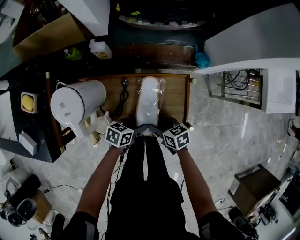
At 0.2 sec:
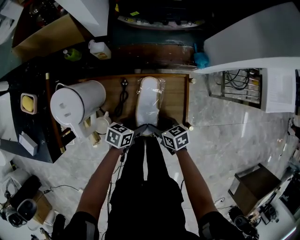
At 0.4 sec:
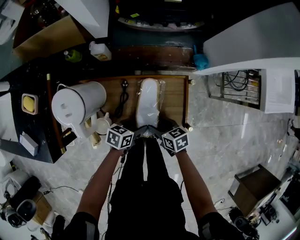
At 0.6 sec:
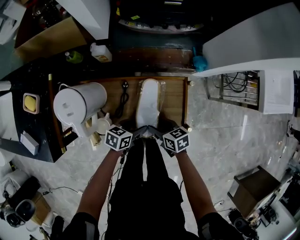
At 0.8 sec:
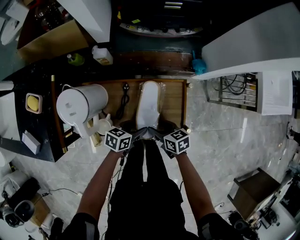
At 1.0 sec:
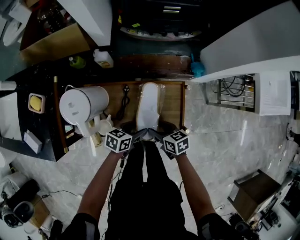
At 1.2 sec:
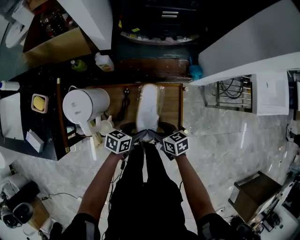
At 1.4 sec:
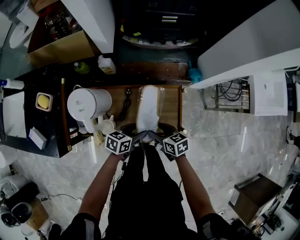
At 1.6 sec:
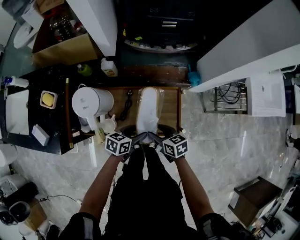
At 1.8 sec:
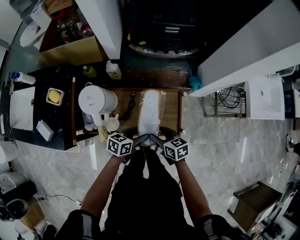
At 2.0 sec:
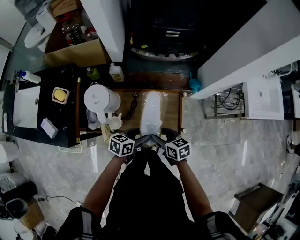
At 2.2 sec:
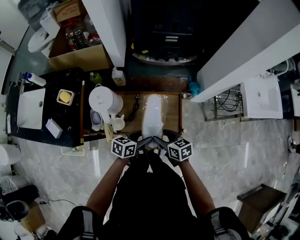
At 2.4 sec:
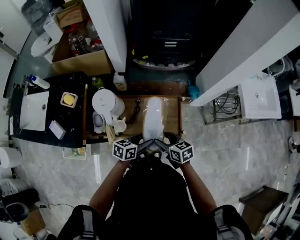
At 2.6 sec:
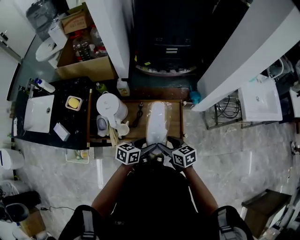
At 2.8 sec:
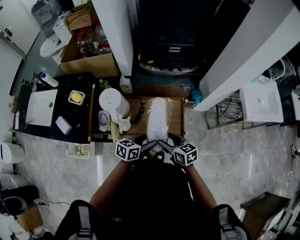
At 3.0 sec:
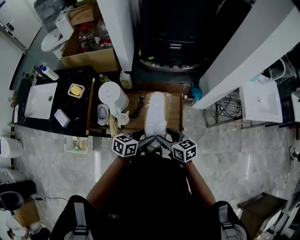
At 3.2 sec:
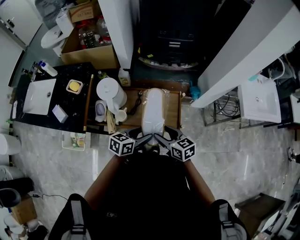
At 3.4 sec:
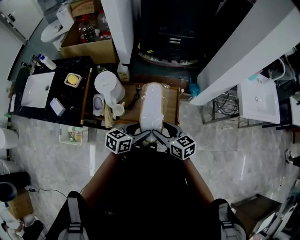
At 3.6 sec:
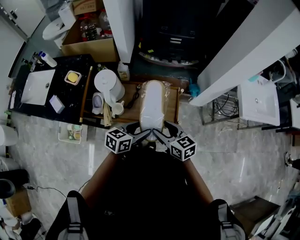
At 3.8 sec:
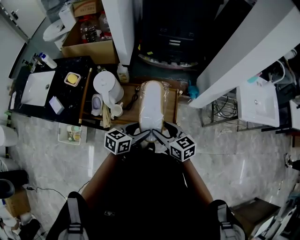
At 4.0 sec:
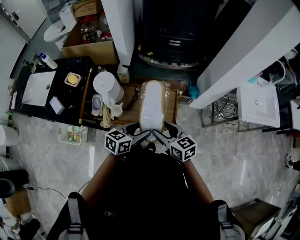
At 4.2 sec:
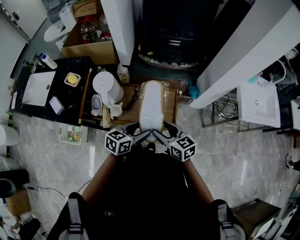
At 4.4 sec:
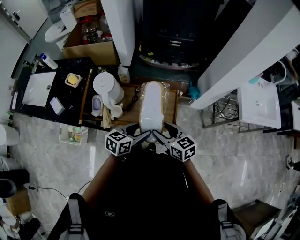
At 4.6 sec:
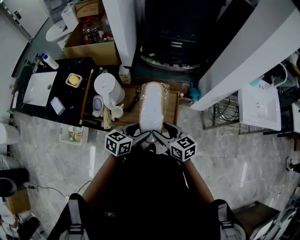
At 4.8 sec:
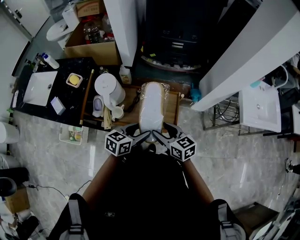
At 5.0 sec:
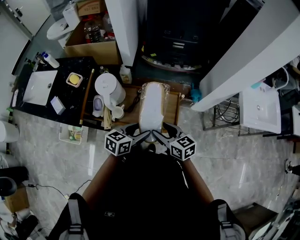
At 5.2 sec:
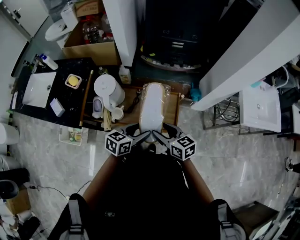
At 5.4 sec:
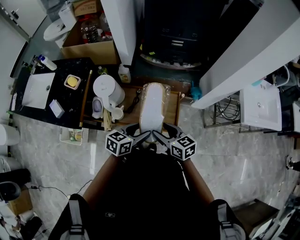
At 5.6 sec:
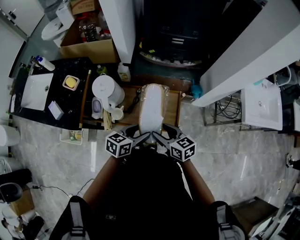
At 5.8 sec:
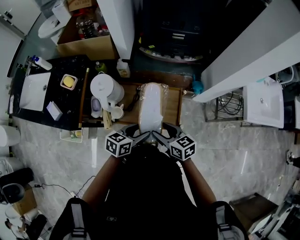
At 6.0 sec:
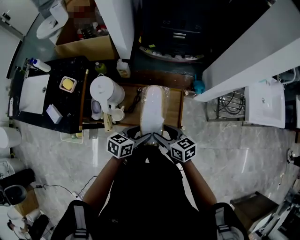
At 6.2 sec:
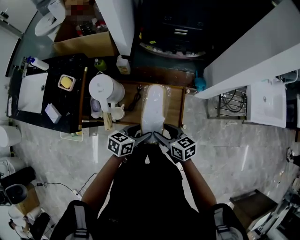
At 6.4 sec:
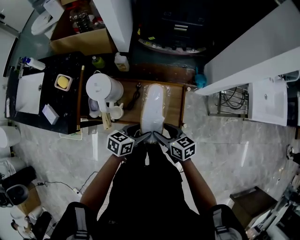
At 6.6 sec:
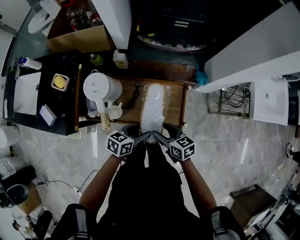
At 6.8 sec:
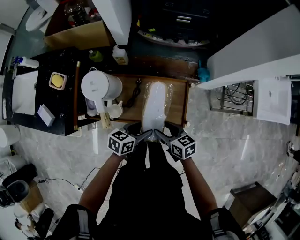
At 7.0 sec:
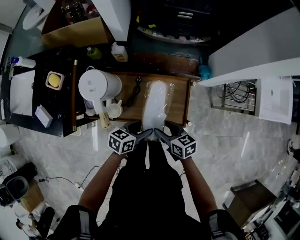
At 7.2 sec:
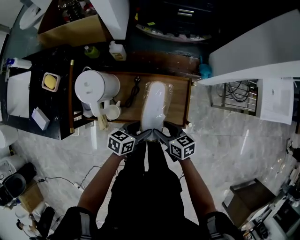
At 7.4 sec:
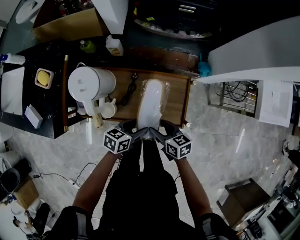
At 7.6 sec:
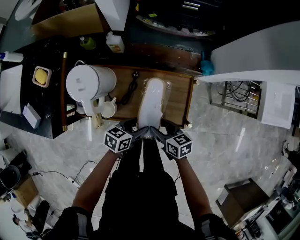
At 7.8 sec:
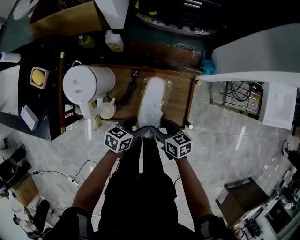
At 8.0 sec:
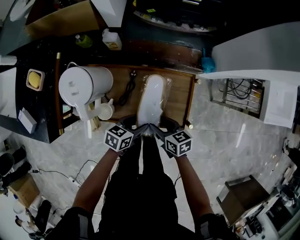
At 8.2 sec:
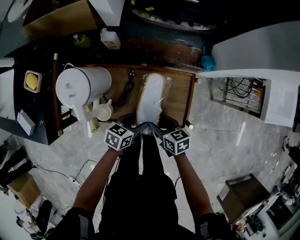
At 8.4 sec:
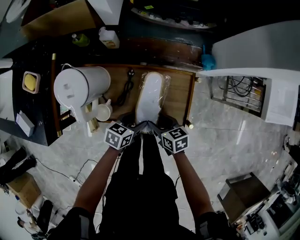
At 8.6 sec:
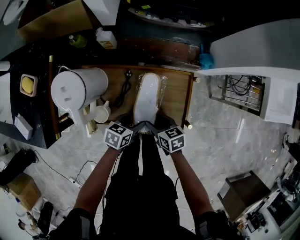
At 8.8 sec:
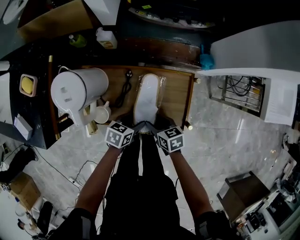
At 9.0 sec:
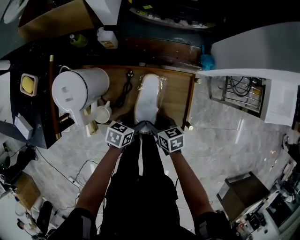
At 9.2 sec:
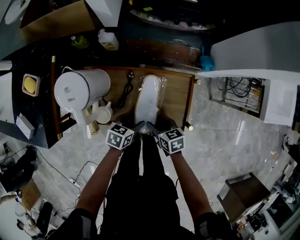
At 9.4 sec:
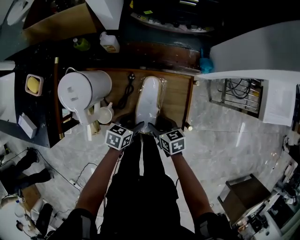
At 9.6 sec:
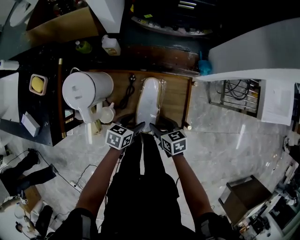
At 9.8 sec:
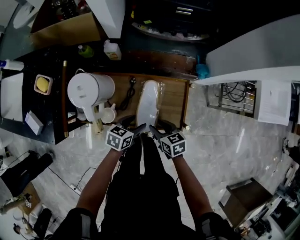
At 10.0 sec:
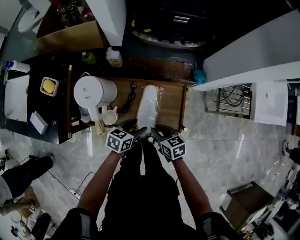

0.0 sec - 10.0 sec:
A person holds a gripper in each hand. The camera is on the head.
0.0 sec - 1.4 sec: The grippers both shift upward by approximately 10 cm.
1.4 sec - 2.8 sec: The grippers both shift upward and backward by some 15 cm.
2.8 sec - 4.2 sec: The left gripper moves some 5 cm; the right gripper travels upward by about 5 cm.
4.2 sec - 5.8 sec: The left gripper shifts by roughly 5 cm; the right gripper shifts by roughly 5 cm.
5.8 sec - 7.2 sec: The grippers both shift downward by some 15 cm.
7.2 sec - 8.6 sec: The two grippers go roughly 10 cm downward.
8.6 sec - 10.0 sec: Both grippers travel together upward, approximately 10 cm. The right gripper closes.

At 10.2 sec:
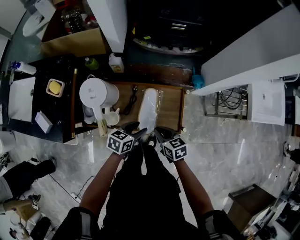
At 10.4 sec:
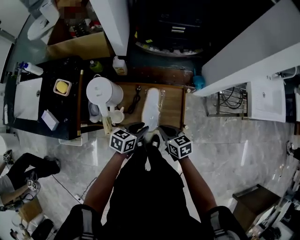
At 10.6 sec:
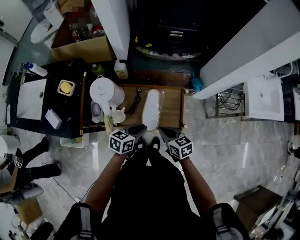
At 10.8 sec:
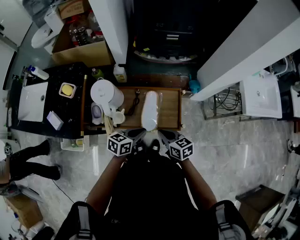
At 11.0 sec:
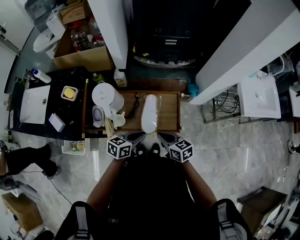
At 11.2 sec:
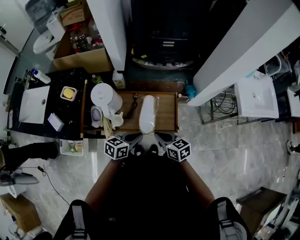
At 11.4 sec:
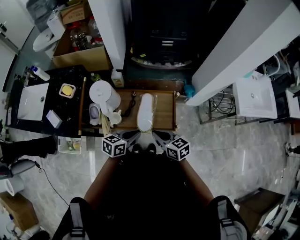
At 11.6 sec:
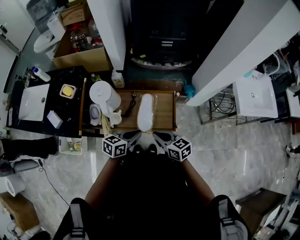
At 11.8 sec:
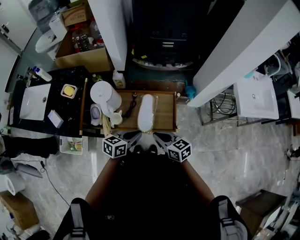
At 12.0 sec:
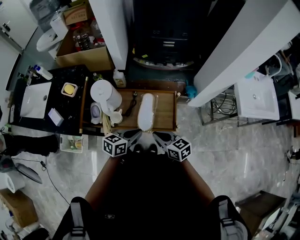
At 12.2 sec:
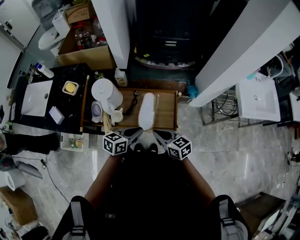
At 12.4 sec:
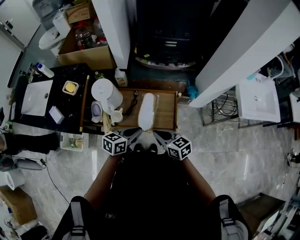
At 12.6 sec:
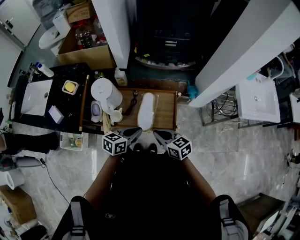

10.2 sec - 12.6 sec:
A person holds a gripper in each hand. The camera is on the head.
10.2 sec - 11.4 sec: The two grippers go some 15 cm upward and backward. The left gripper closes up.
11.4 sec - 12.6 sec: The grippers make only small movements.

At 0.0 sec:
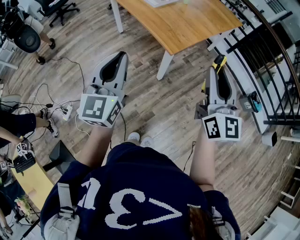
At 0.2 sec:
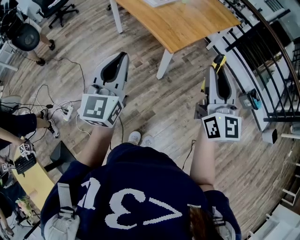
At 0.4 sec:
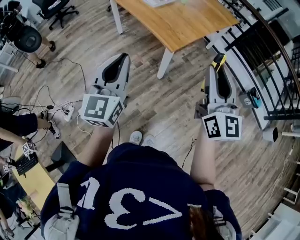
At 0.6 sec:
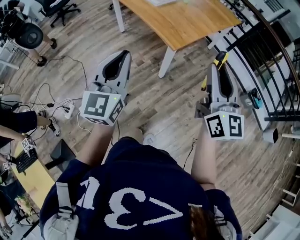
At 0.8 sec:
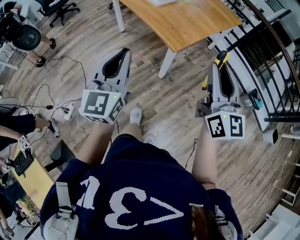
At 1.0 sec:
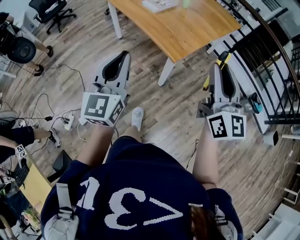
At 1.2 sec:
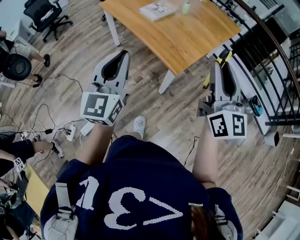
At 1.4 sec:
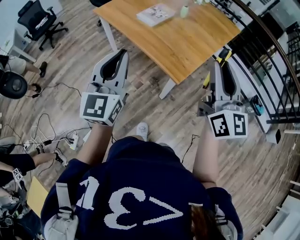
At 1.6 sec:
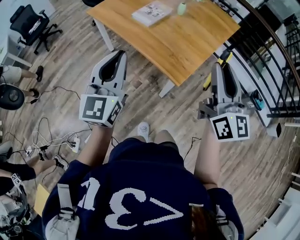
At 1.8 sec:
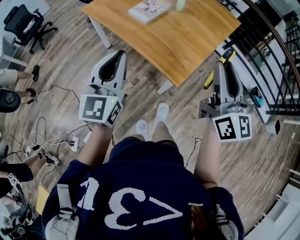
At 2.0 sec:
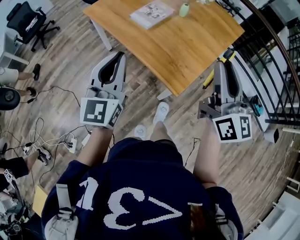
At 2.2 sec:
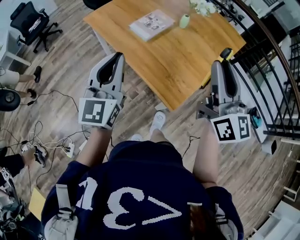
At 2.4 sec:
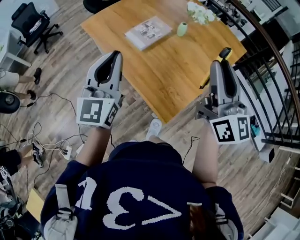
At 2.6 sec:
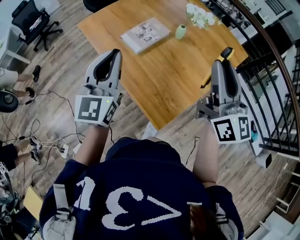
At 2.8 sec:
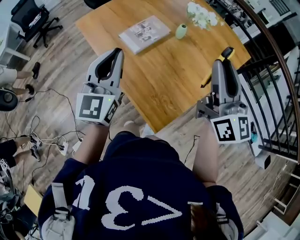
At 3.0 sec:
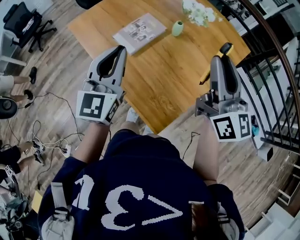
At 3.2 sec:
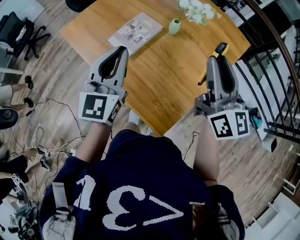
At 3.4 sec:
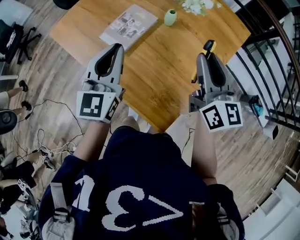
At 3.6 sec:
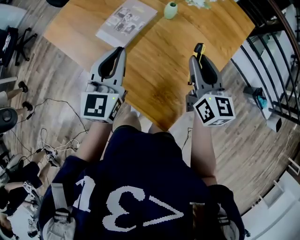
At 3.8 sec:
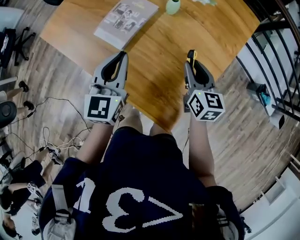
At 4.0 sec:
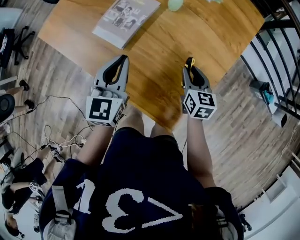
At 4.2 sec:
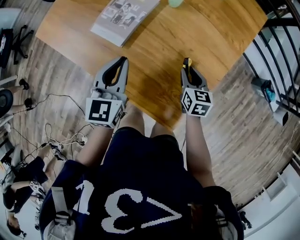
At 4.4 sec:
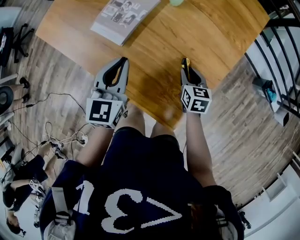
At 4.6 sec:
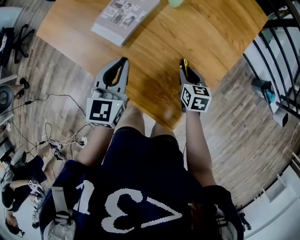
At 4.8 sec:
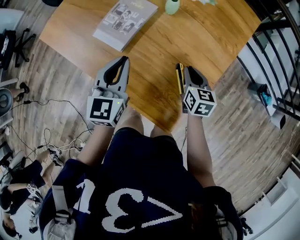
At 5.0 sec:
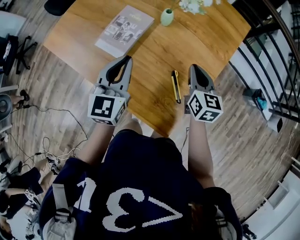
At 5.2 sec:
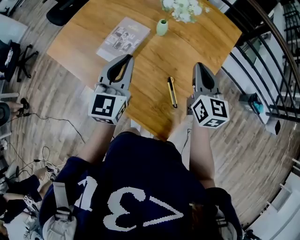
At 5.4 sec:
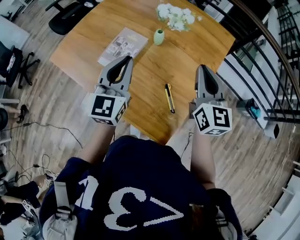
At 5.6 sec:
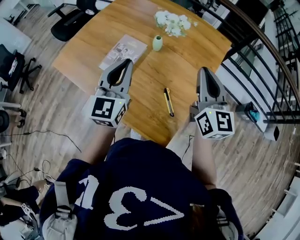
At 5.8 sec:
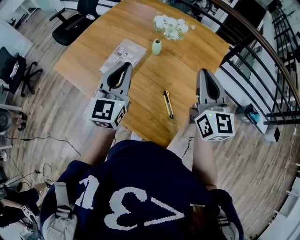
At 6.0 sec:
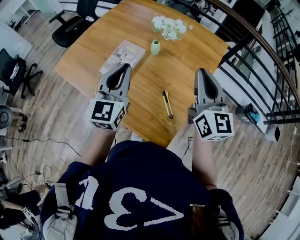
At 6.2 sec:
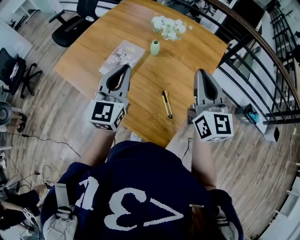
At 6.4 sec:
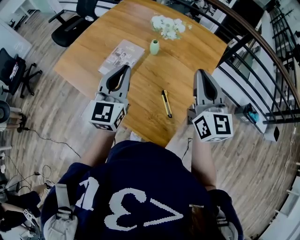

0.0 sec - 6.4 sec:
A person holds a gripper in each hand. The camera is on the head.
0.0 sec - 1.6 sec: The grippers both shift forward by about 20 cm.
1.6 sec - 3.2 sec: Both grippers travel together forward, approximately 35 cm.
3.2 sec - 4.8 sec: The right gripper is displaced downward by some 35 cm, and tilts its fingers approximately 40 degrees downward; the left gripper heads downward, covering approximately 15 cm.
4.8 sec - 6.4 sec: The left gripper heads upward, covering some 15 cm; the right gripper shifts approximately 30 cm upward, and tilts its fingers roughly 40 degrees upward.

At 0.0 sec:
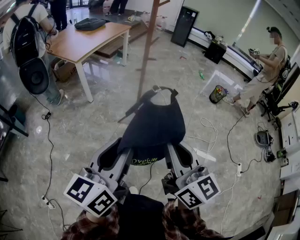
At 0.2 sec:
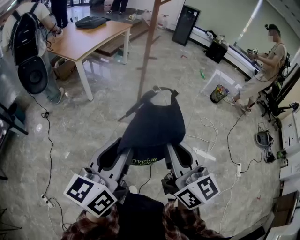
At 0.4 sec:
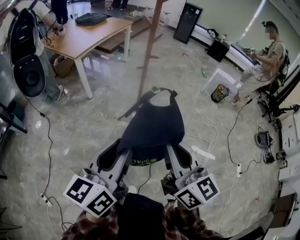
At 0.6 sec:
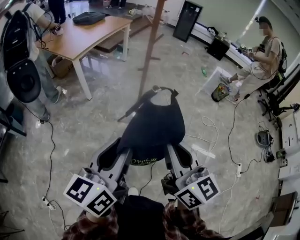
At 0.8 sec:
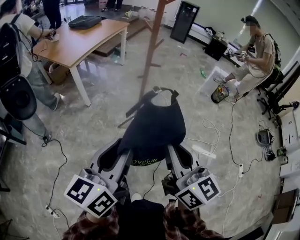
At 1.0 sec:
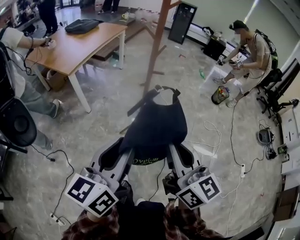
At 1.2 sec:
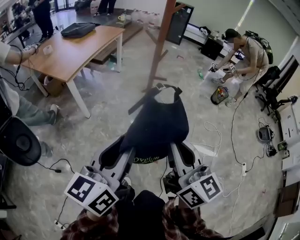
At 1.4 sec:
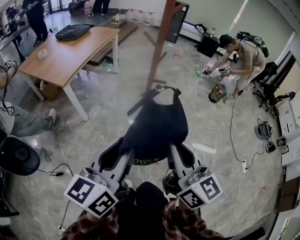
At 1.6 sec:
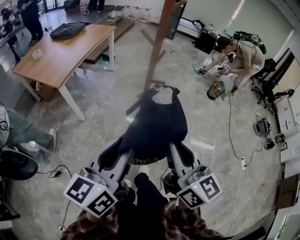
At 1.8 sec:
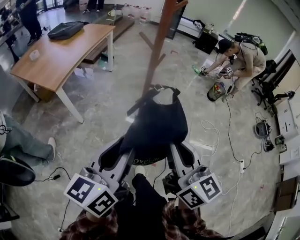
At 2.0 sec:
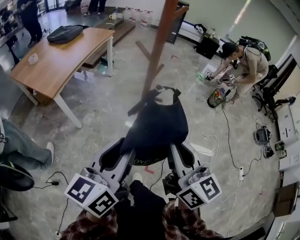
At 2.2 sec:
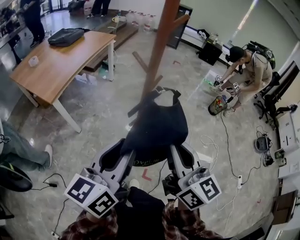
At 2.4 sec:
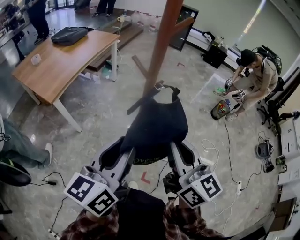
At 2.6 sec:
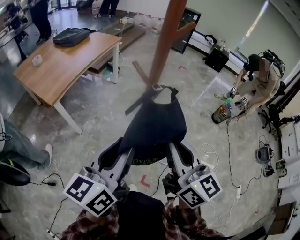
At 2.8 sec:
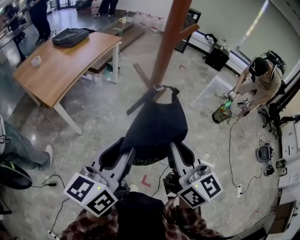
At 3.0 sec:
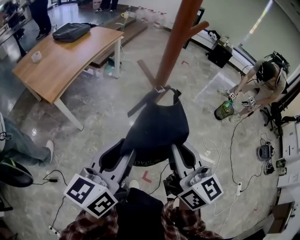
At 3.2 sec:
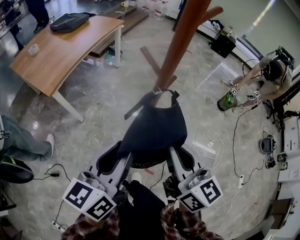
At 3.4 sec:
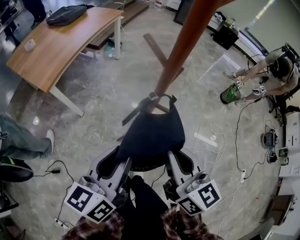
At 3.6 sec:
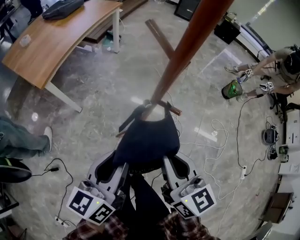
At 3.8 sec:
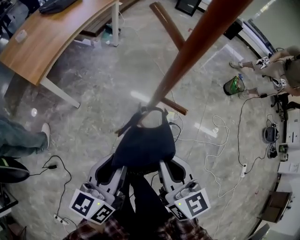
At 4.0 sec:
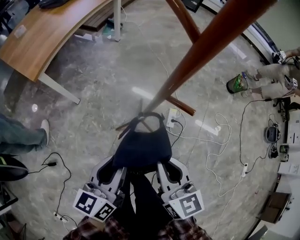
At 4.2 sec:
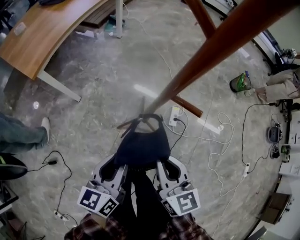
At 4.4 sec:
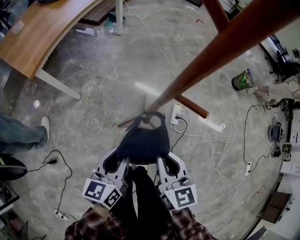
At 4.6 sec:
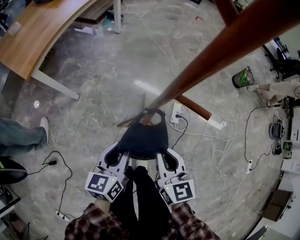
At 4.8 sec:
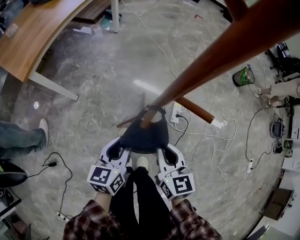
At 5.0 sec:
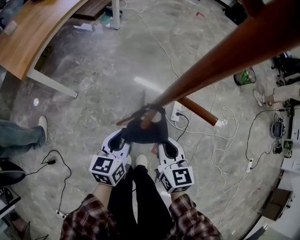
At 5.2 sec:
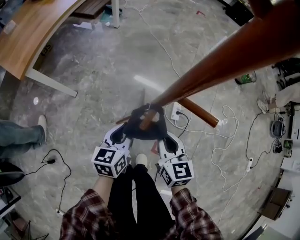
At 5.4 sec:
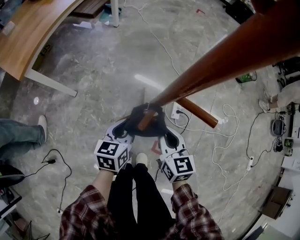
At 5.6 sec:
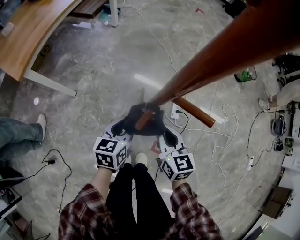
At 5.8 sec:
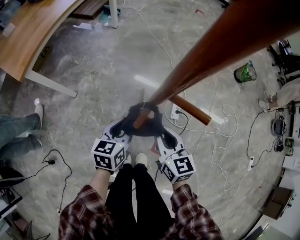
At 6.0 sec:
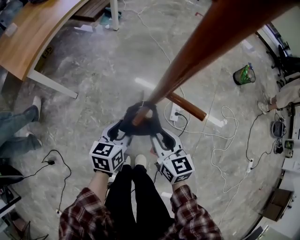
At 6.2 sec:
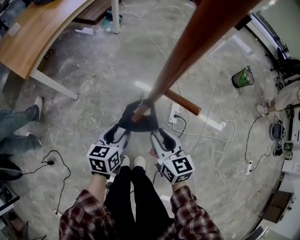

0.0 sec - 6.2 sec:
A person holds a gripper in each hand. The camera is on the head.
0.0 sec - 1.6 sec: Both grippers travel together forward, about 30 cm.
1.6 sec - 3.2 sec: The grippers both shift forward by roughly 20 cm.
3.2 sec - 4.6 sec: The grippers both shift downward by approximately 35 cm. The right gripper changes its angle by about 20 degrees.
4.6 sec - 6.2 sec: Both grippers travel together downward, approximately 5 cm. The right gripper opens up. The left gripper opens.
